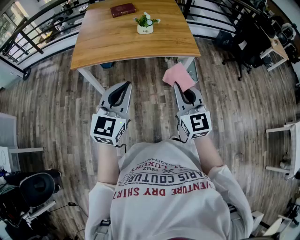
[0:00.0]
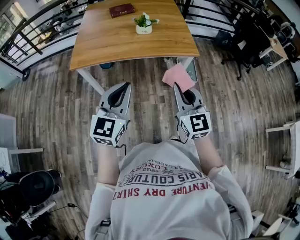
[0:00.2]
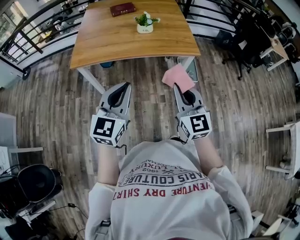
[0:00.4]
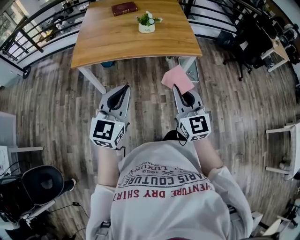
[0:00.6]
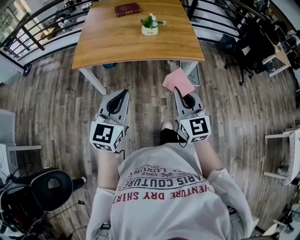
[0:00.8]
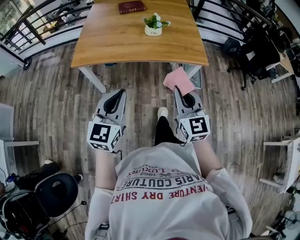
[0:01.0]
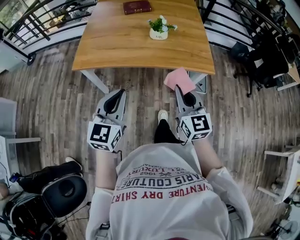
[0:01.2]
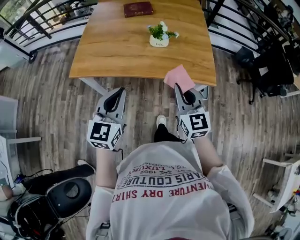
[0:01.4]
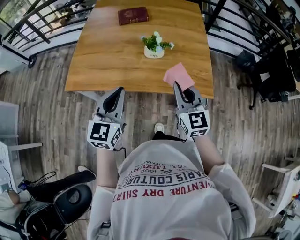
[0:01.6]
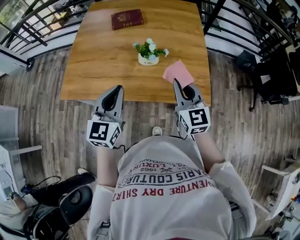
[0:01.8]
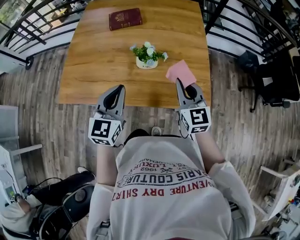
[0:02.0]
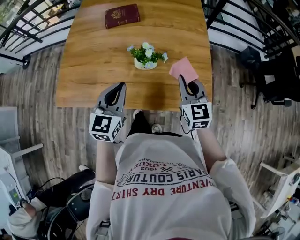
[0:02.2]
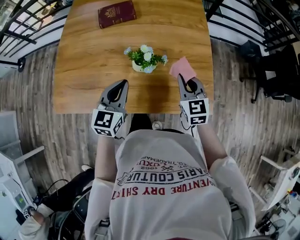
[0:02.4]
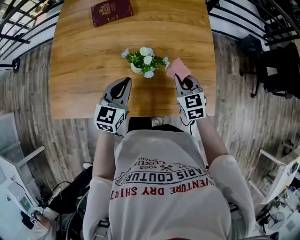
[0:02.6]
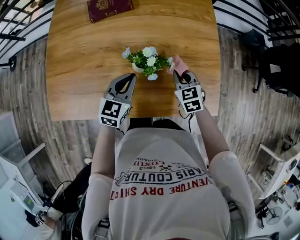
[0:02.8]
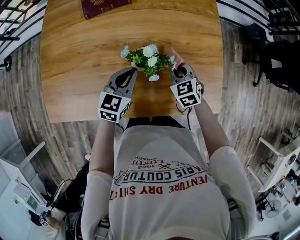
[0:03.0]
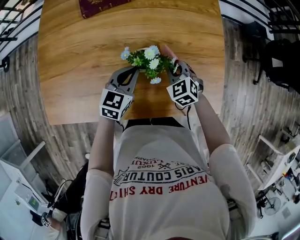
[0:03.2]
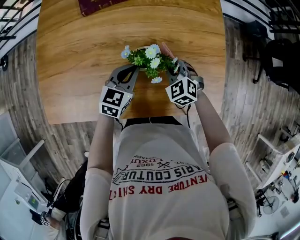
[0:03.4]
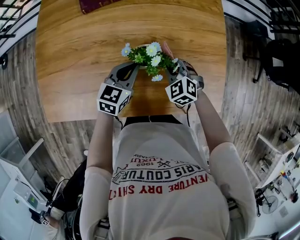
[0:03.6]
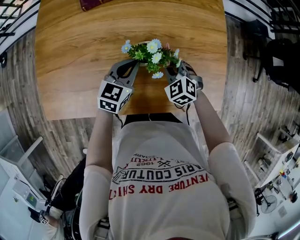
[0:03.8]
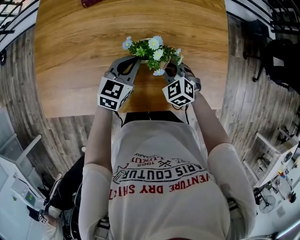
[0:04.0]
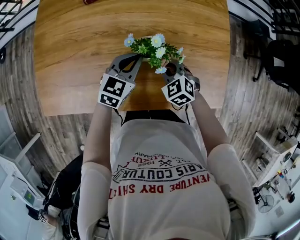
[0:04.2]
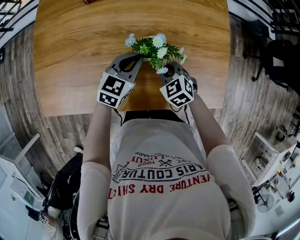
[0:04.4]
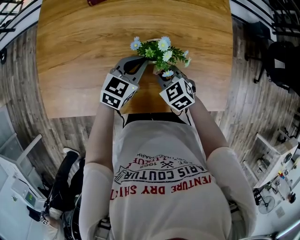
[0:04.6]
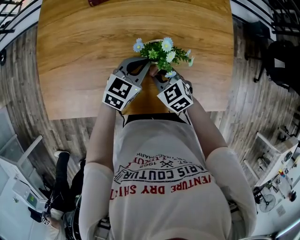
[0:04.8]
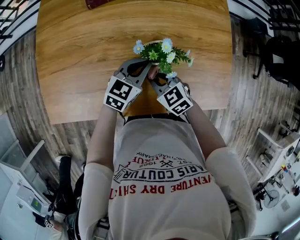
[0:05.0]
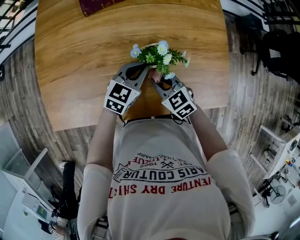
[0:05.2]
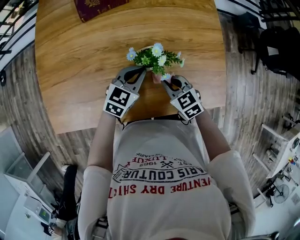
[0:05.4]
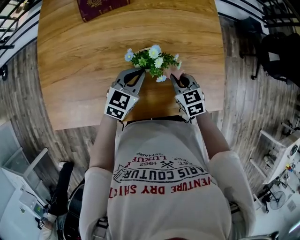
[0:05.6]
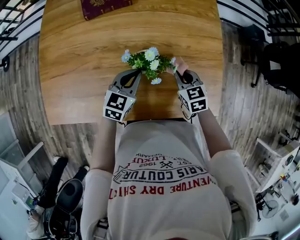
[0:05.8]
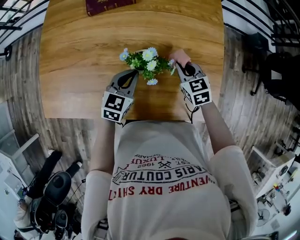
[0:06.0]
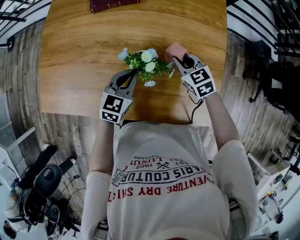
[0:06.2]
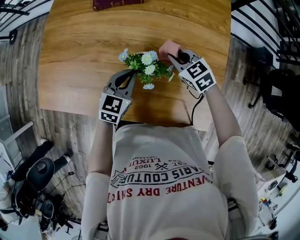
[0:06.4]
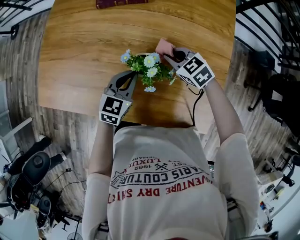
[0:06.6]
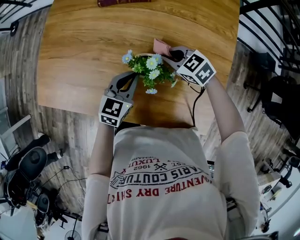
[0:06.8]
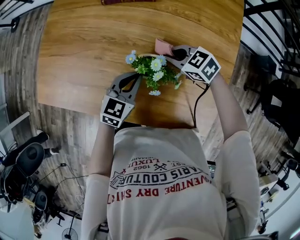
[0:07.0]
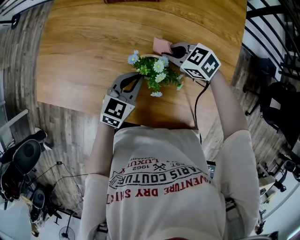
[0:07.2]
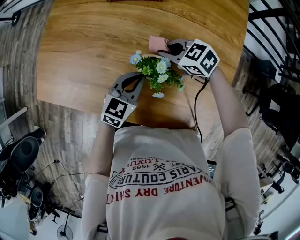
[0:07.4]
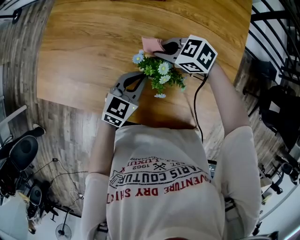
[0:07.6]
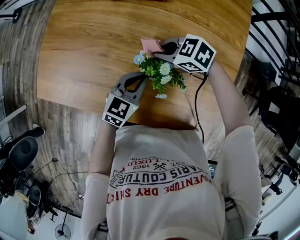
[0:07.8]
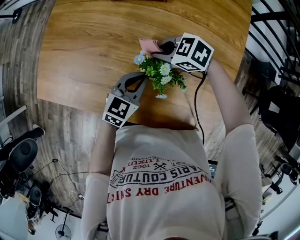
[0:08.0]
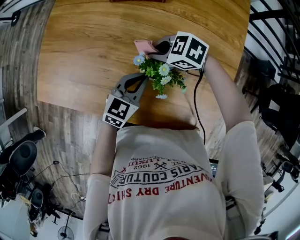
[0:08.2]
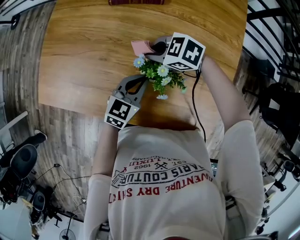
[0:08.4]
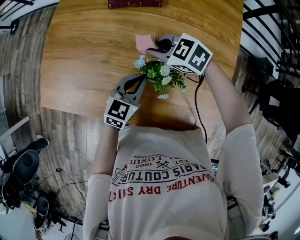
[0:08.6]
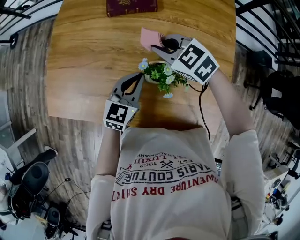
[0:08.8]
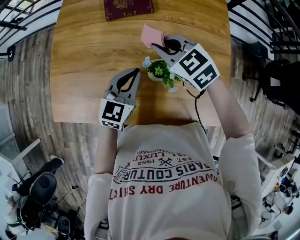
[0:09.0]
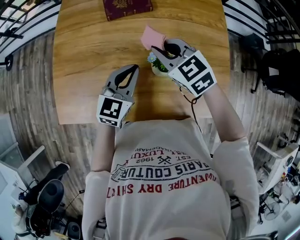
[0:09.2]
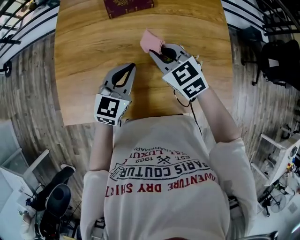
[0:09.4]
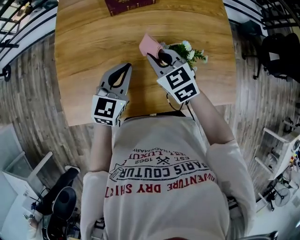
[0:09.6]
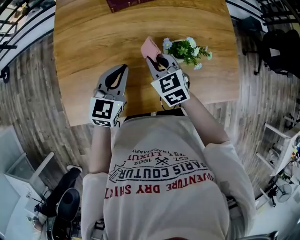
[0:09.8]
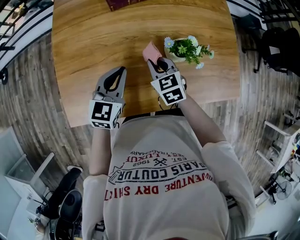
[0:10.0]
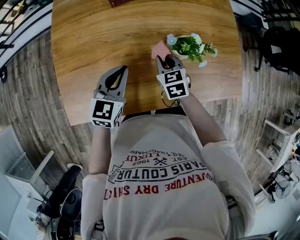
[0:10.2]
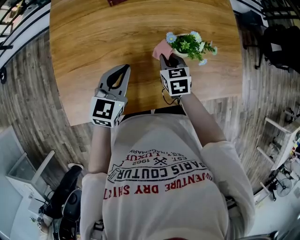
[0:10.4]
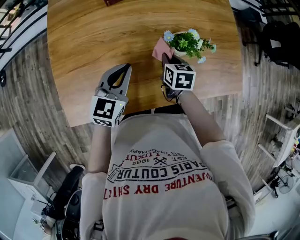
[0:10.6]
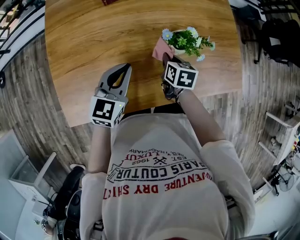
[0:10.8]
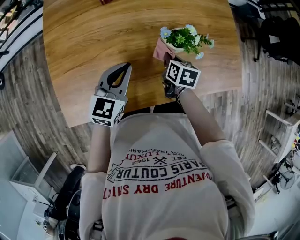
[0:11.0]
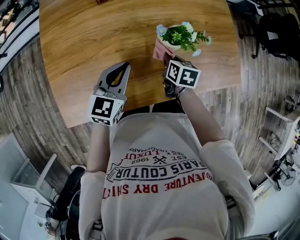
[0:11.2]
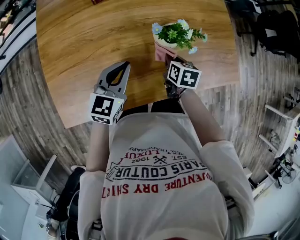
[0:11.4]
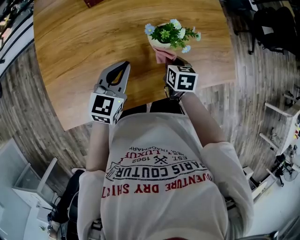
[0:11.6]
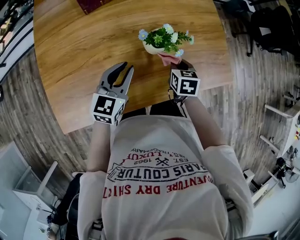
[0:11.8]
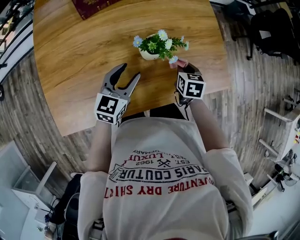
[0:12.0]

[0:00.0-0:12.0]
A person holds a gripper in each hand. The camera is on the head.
0.0 to 1.6 s: The grippers both shift forward by roughly 30 cm.
1.6 to 3.0 s: The grippers both shift forward and downward by approximately 35 cm. The right gripper points its fingers some 30 degrees further downward, while the left gripper turns by roughly 30 degrees.
3.0 to 4.4 s: The right gripper moves to the left, about 5 cm.
4.4 to 6.0 s: The right gripper is displaced to the right and forward by approximately 15 cm.
6.0 to 7.6 s: The right gripper shifts by about 15 cm, and changes its angle by approximately 60 degrees.
7.6 to 9.0 s: The left gripper goes approximately 10 cm upward; the right gripper shifts about 15 cm upward, and changes its angle by about 40 degrees.
9.0 to 10.4 s: The left gripper moves some 15 cm, while the right gripper is displaced downward by some 20 cm, and turns by roughly 50 degrees.
10.4 to 12.0 s: The right gripper shifts some 20 cm to the right, and rotates some 20 degrees. Meanwhile the left gripper goes approximately 10 cm to the right, and opens up.

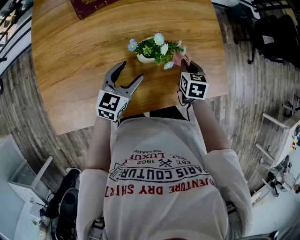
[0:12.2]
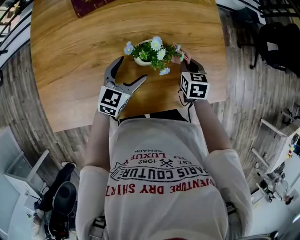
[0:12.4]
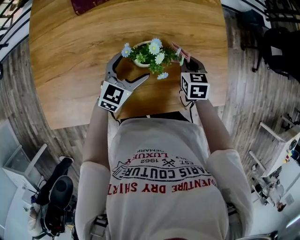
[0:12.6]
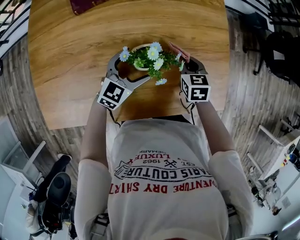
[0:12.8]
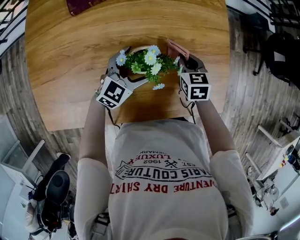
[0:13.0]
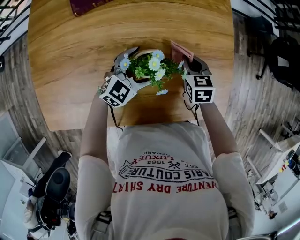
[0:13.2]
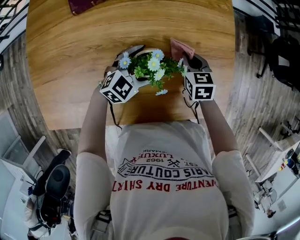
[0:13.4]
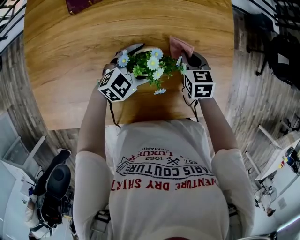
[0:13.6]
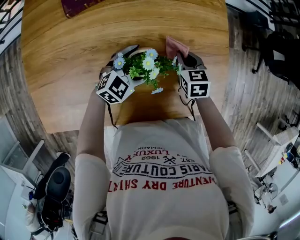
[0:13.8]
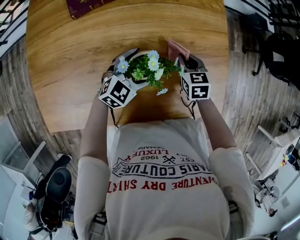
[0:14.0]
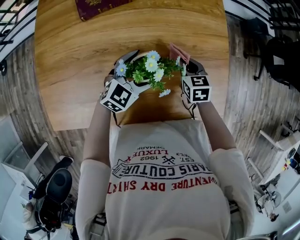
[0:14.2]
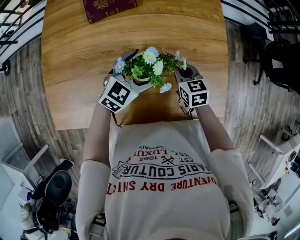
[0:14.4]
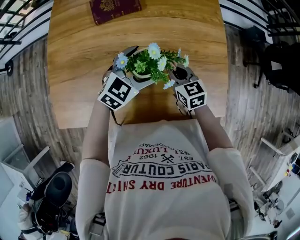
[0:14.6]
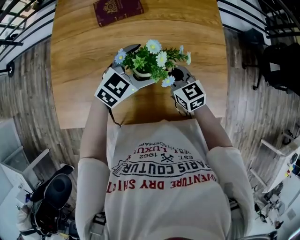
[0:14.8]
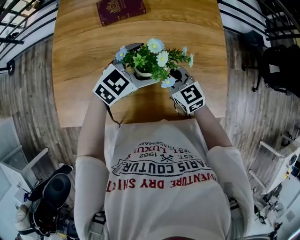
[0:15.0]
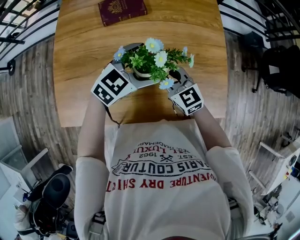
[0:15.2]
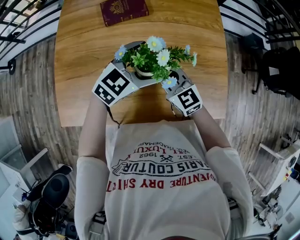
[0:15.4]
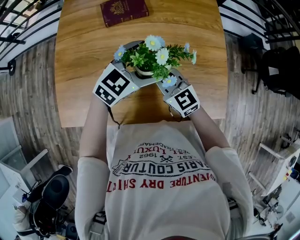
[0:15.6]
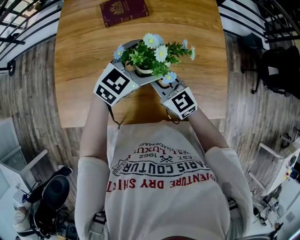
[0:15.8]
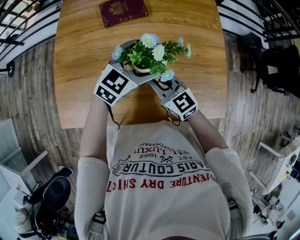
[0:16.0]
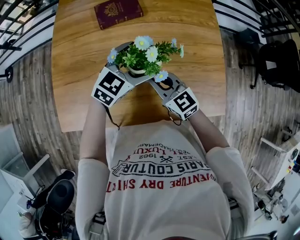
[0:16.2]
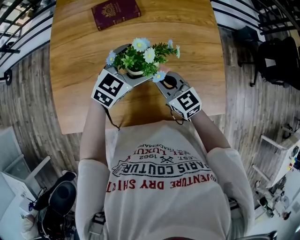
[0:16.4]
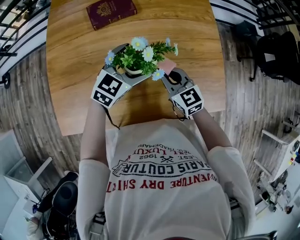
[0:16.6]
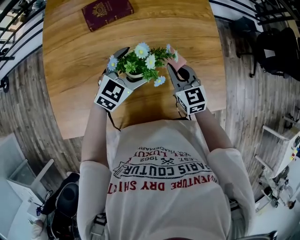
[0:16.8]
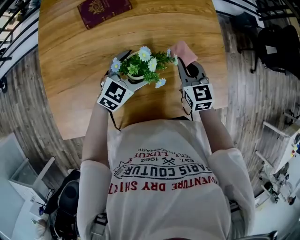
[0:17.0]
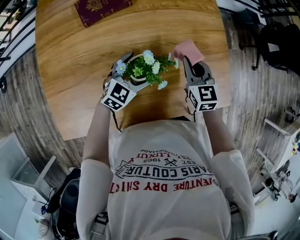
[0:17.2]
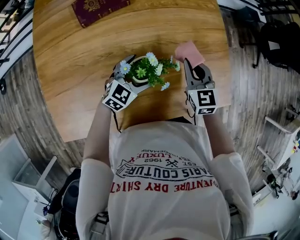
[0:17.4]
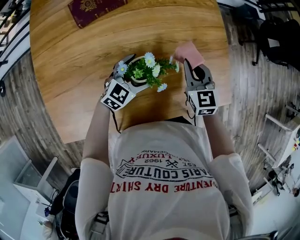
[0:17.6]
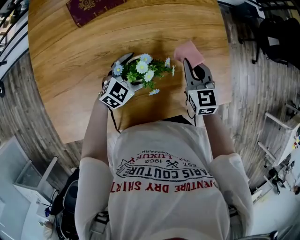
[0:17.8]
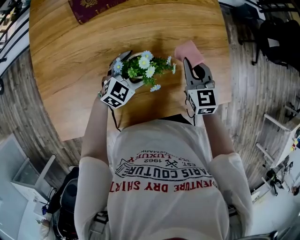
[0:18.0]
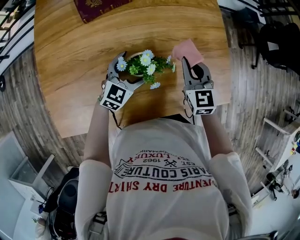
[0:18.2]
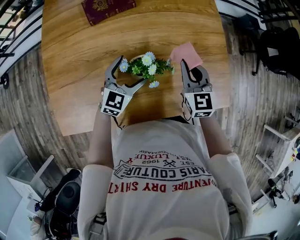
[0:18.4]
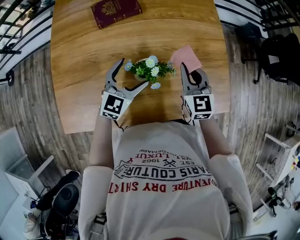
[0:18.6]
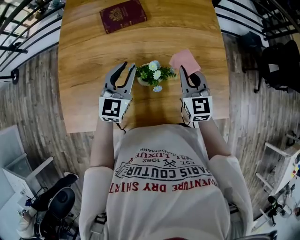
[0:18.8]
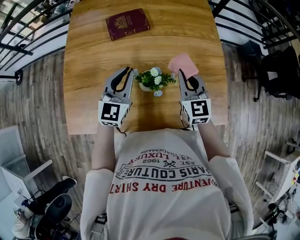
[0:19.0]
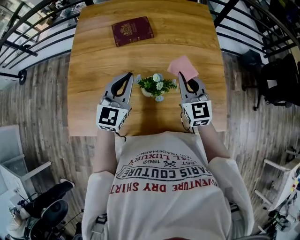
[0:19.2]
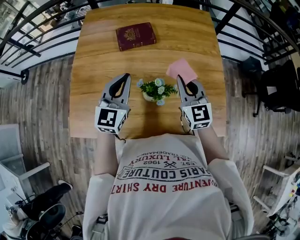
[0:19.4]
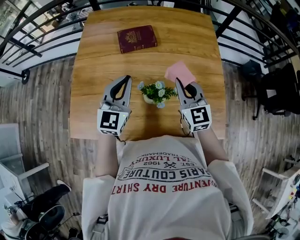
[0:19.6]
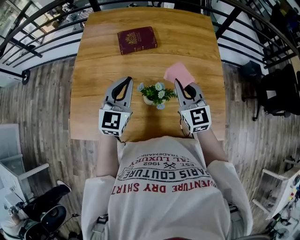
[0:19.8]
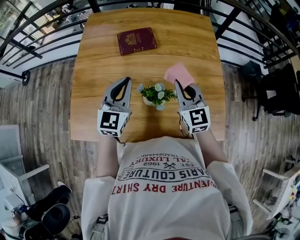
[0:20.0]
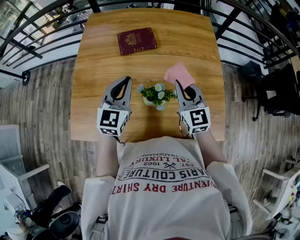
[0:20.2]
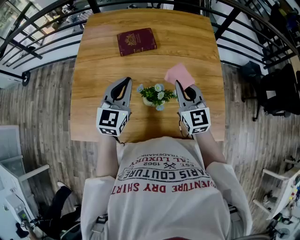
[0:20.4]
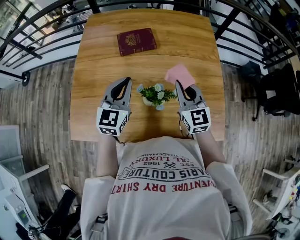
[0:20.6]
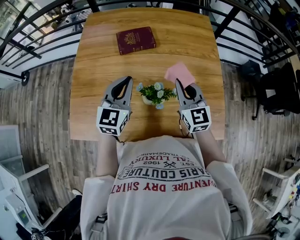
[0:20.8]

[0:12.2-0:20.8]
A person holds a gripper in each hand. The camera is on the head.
12.2 to 13.6 s: The left gripper travels forward, to the right and downward by approximately 15 cm, swivels about 30 degrees, and opens its fingers. The right gripper travels forward by approximately 10 cm, and rotates some 20 degrees.
13.6 to 15.0 s: The right gripper moves to the left, upward and backward, some 20 cm, and turns by about 40 degrees; the left gripper moves upward, about 15 cm.
16.6 to 18.0 s: The right gripper is displaced to the right by about 10 cm, and swivels roughly 20 degrees; the left gripper heads downward, covering some 15 cm.
18.0 to 19.4 s: The left gripper goes approximately 25 cm upward, swivels about 50 degrees, and closes its fingers. The right gripper shifts about 15 cm upward, and rotates roughly 20 degrees.
19.4 to 20.8 s: The two grippers keep their place.

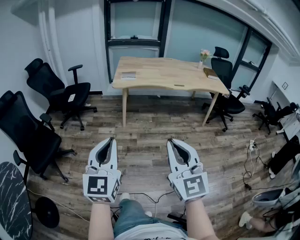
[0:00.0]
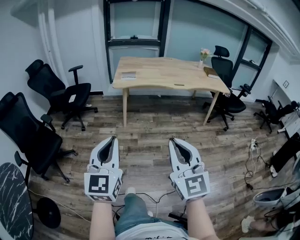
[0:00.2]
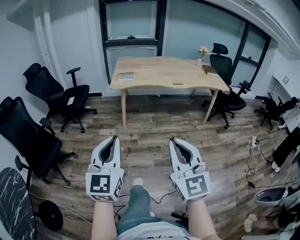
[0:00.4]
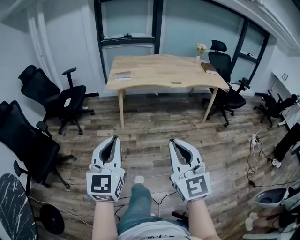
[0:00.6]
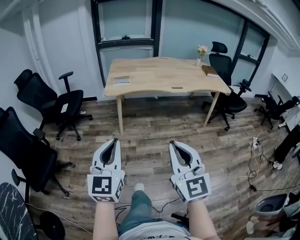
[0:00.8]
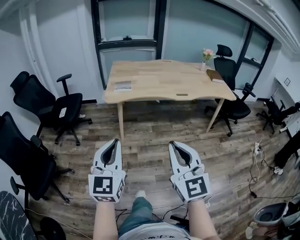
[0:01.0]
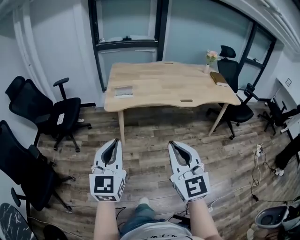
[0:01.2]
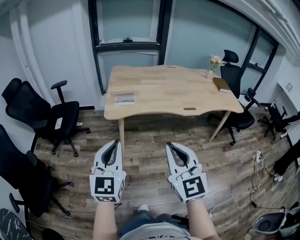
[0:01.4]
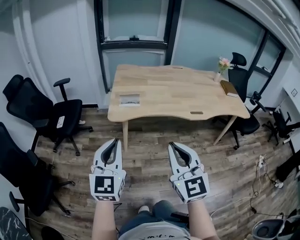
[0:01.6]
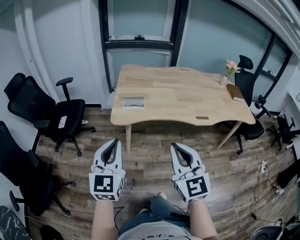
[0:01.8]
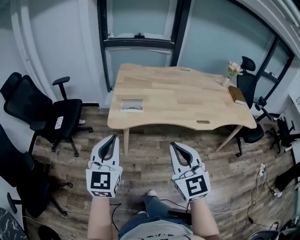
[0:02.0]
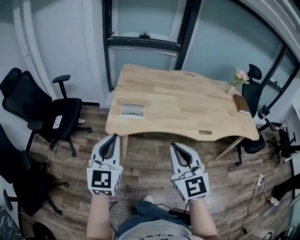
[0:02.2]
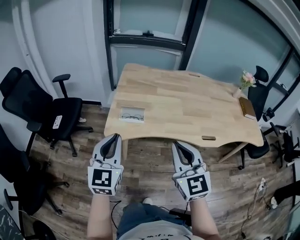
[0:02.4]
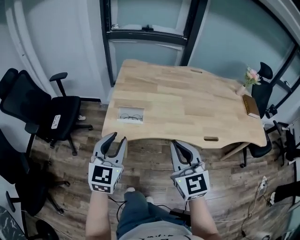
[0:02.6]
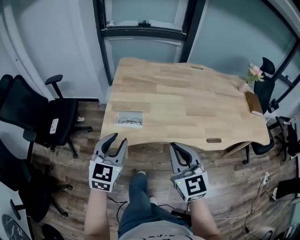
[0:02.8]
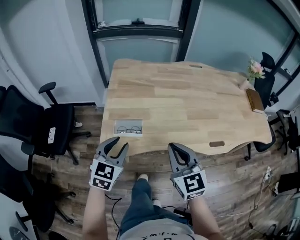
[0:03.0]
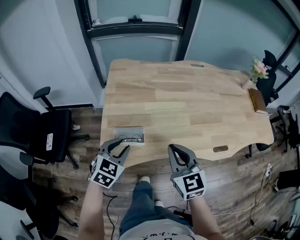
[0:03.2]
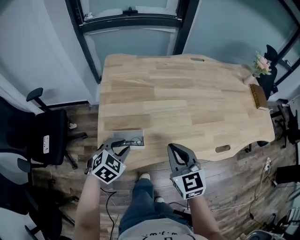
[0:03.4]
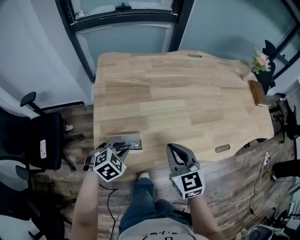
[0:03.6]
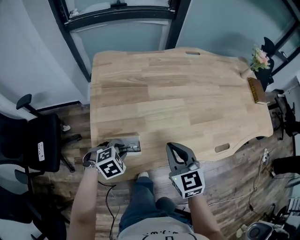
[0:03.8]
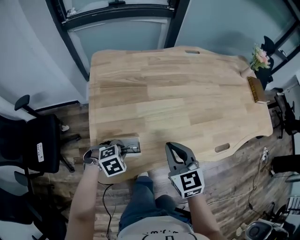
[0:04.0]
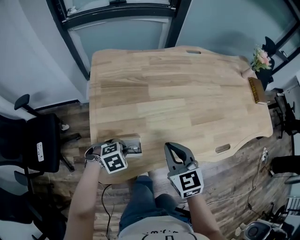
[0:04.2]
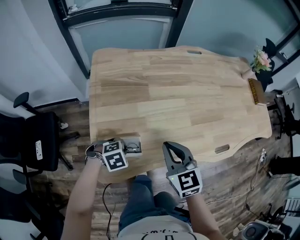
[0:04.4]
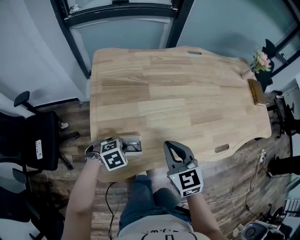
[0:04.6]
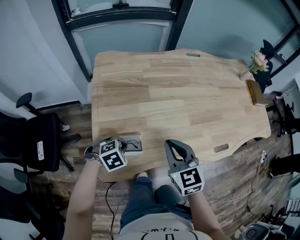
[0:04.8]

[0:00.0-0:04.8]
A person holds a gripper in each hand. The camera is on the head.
0.0 to 1.6 s: The pair of grippers is taken forward, approximately 50 cm.
1.6 to 3.2 s: The pair of grippers is taken forward, some 40 cm. The left gripper heads downward, covering approximately 20 cm, and points its fingers some 40 degrees further downward.
3.2 to 4.8 s: The right gripper shifts by some 10 cm. Meanwhile the left gripper moves downward, approximately 10 cm, and angles its fingers downward, by roughly 30 degrees.
